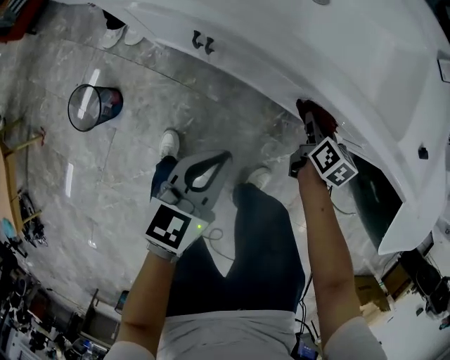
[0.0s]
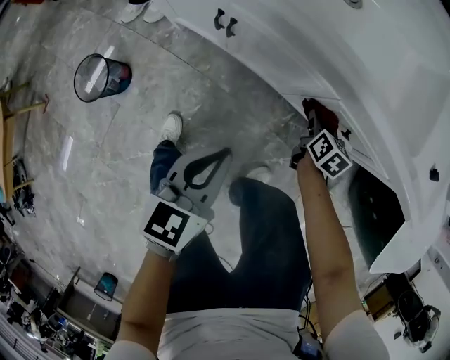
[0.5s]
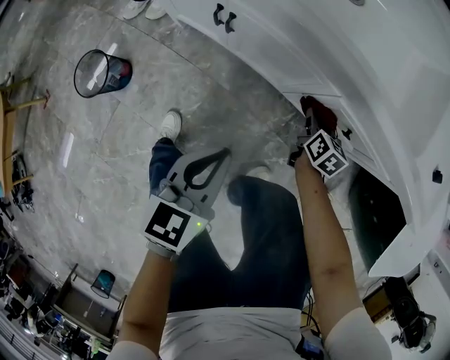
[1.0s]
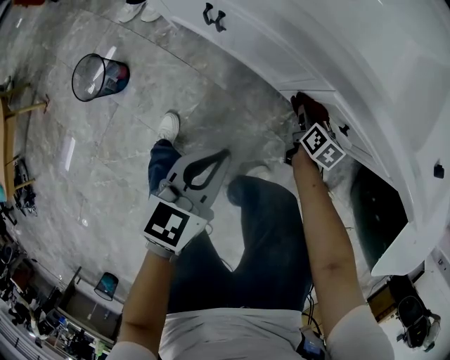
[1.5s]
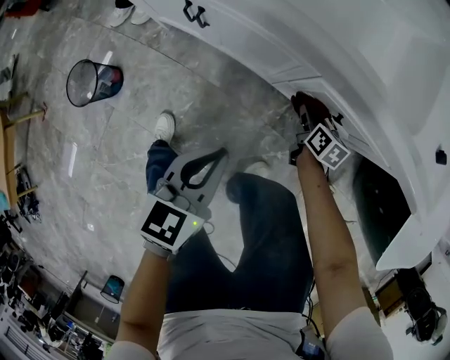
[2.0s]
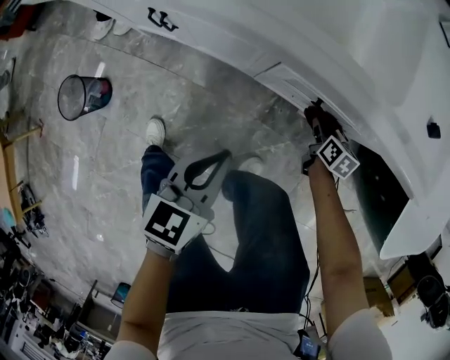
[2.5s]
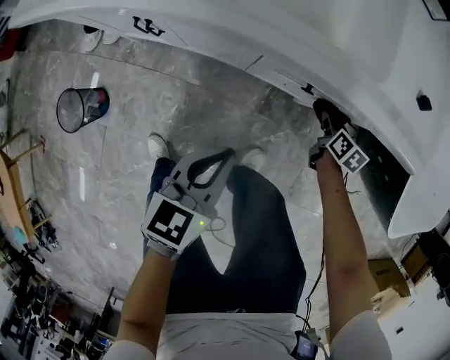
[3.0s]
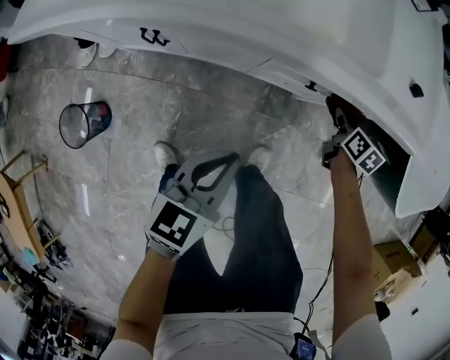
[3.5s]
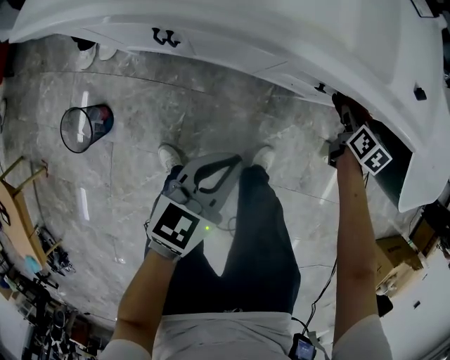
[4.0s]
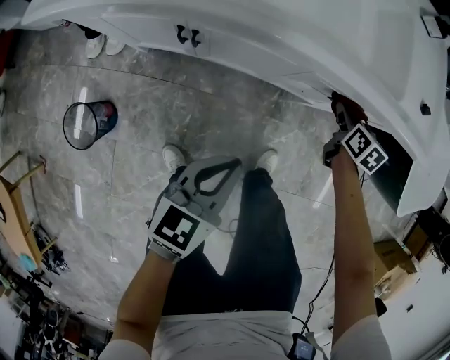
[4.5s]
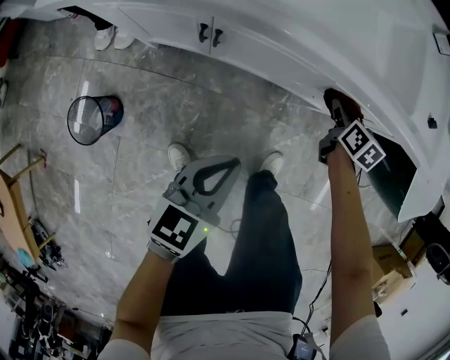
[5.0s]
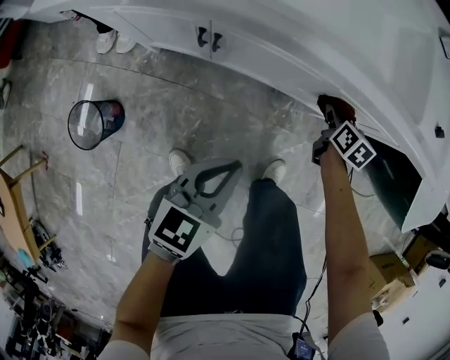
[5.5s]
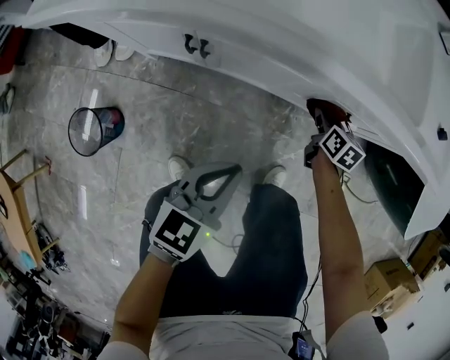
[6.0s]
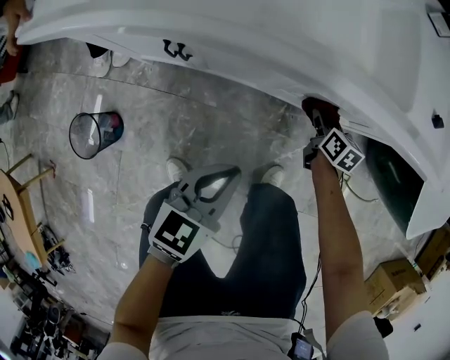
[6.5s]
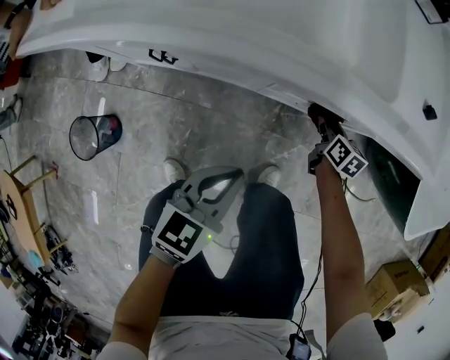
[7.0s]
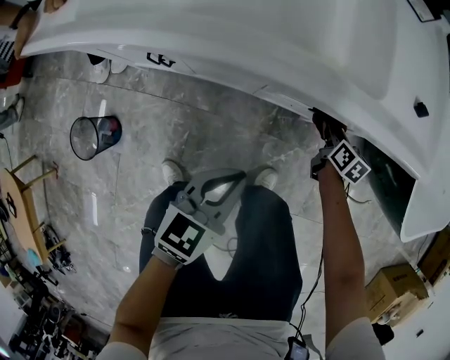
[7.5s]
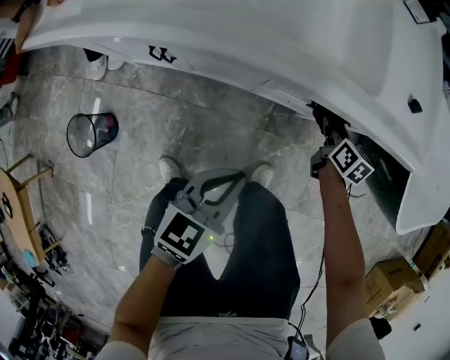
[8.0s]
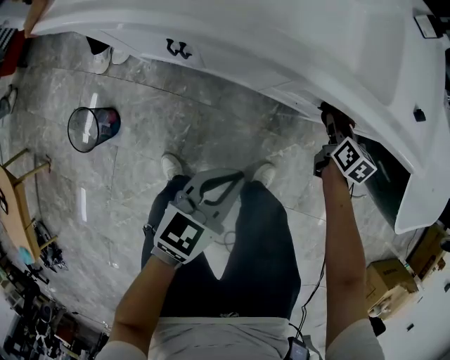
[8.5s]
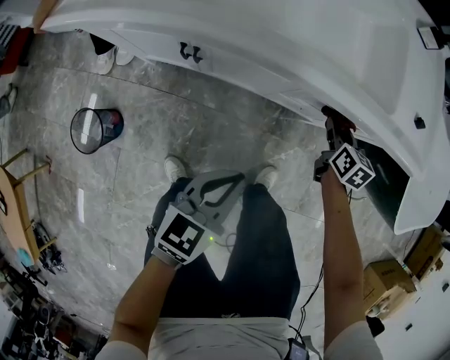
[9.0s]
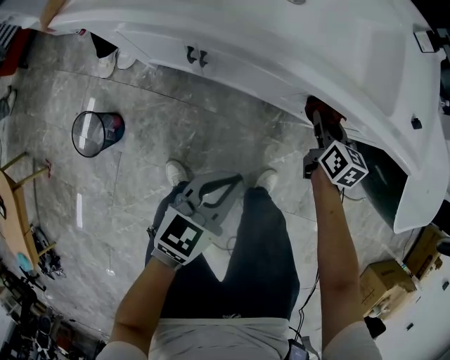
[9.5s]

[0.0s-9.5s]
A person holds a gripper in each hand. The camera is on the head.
0.0s to 2.0s: The left gripper shifts some 5 cm to the right. Meanwhile the right gripper shifts about 10 cm downward.
2.0s to 4.0s: The left gripper is displaced upward by some 5 cm, and rotates roughly 20 degrees. The right gripper goes roughly 15 cm upward, and changes its angle by some 20 degrees.
4.0s to 5.5s: The right gripper heads to the left and downward, covering some 15 cm; the left gripper goes some 10 cm to the left.
5.5s to 7.5s: The grippers both shift to the right by some 15 cm.
7.5s to 9.5s: The right gripper travels to the left and upward by approximately 20 cm; the left gripper goes about 10 cm to the left and backward.

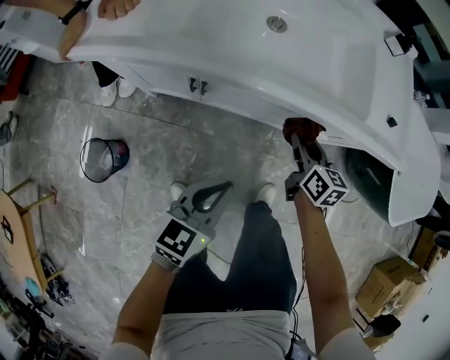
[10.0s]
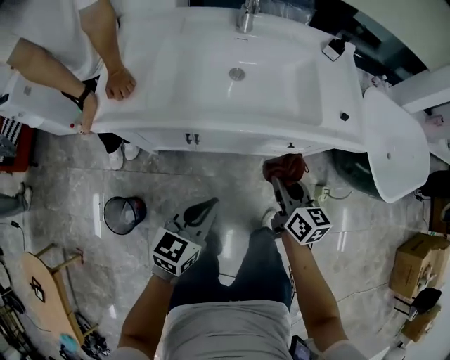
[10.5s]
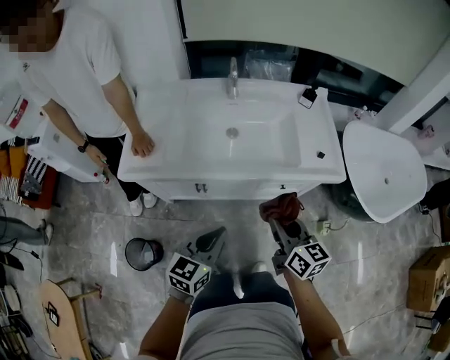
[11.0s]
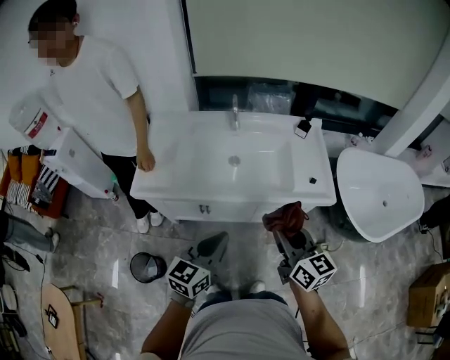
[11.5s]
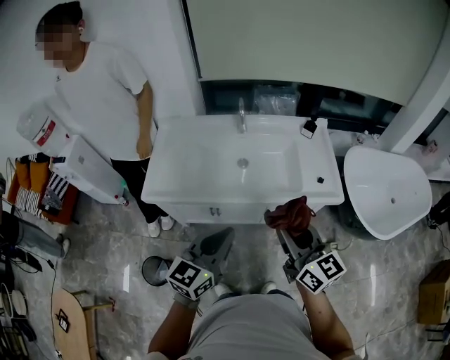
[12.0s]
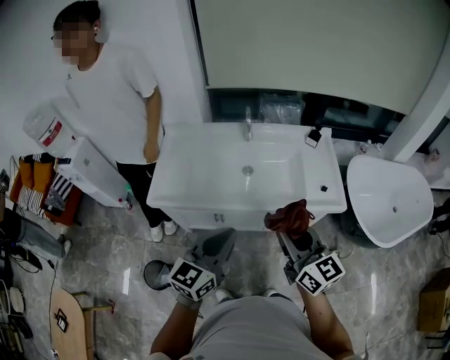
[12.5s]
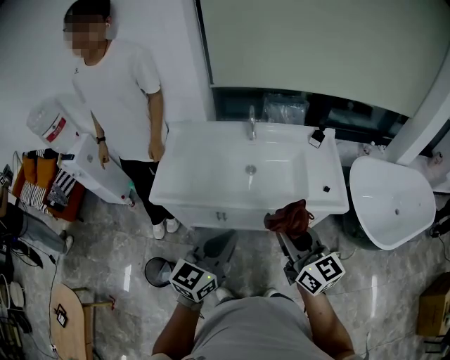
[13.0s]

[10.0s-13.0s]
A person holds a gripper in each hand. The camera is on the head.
10.0s to 11.5s: The grippers both shift upward by some 35 cm. The right gripper rotates some 20 degrees.
11.5s to 13.0s: Both grippers travel together upward, approximately 5 cm.

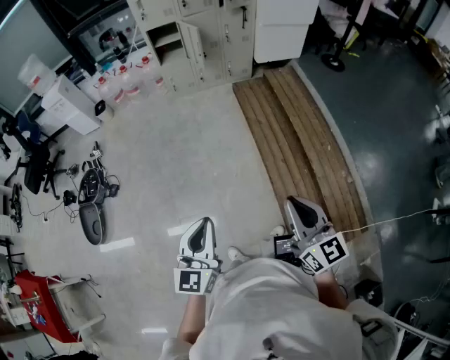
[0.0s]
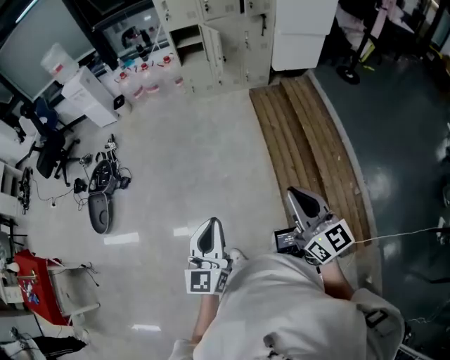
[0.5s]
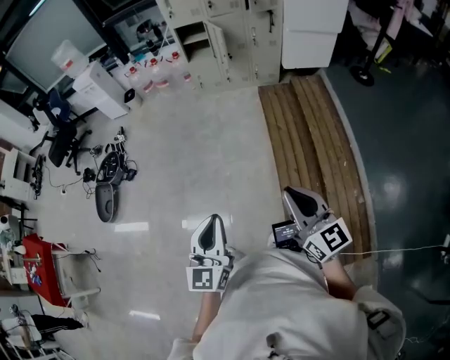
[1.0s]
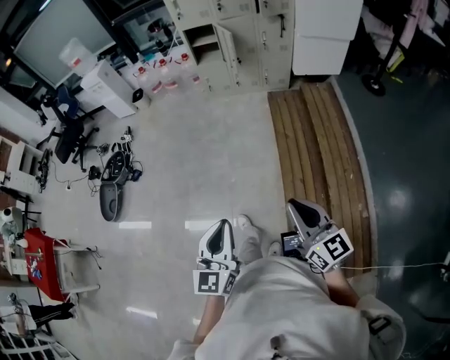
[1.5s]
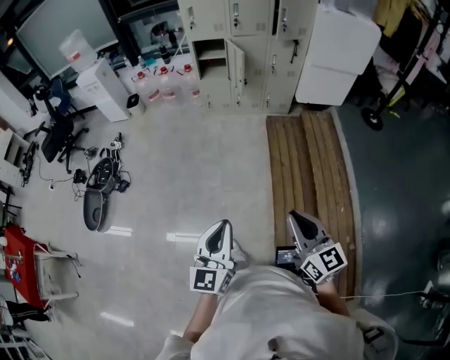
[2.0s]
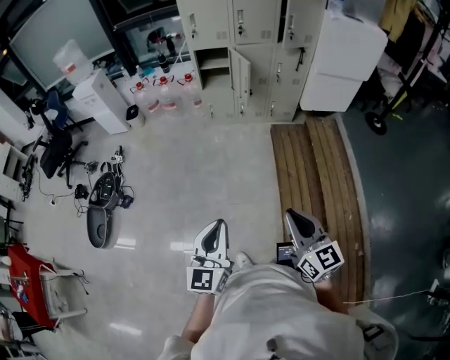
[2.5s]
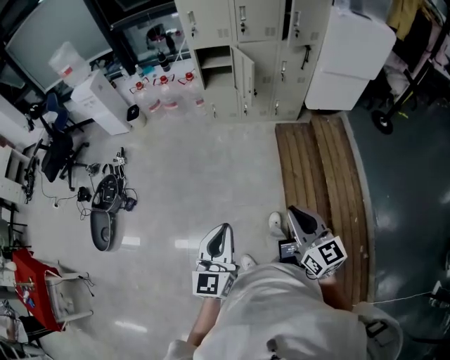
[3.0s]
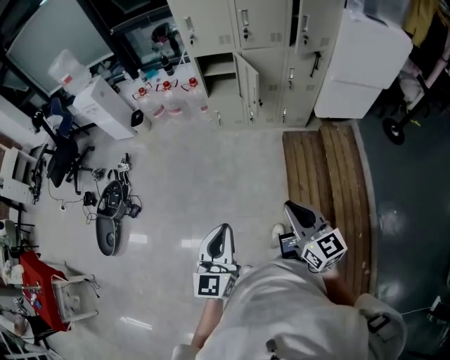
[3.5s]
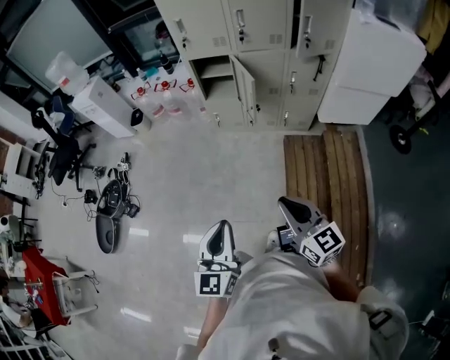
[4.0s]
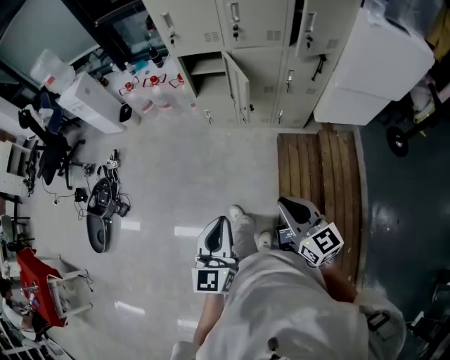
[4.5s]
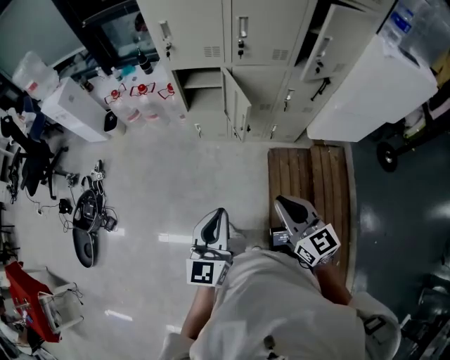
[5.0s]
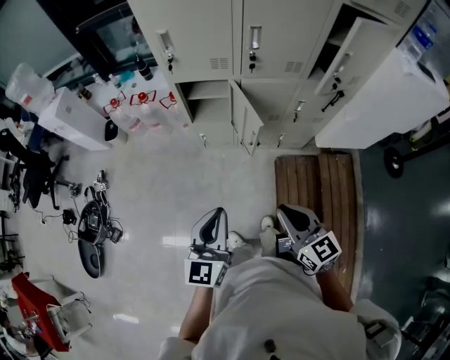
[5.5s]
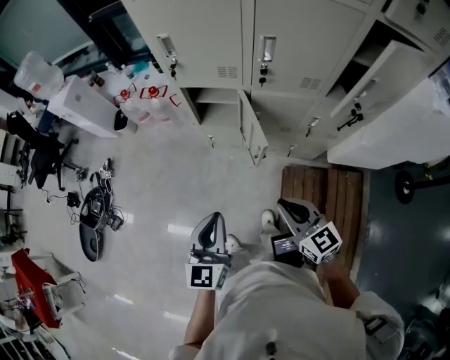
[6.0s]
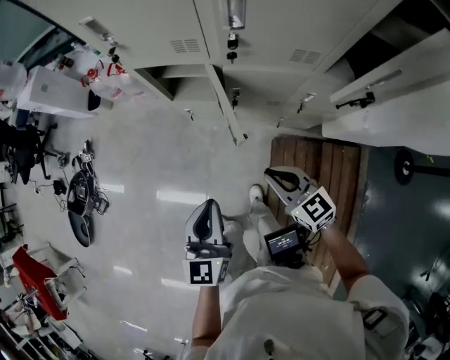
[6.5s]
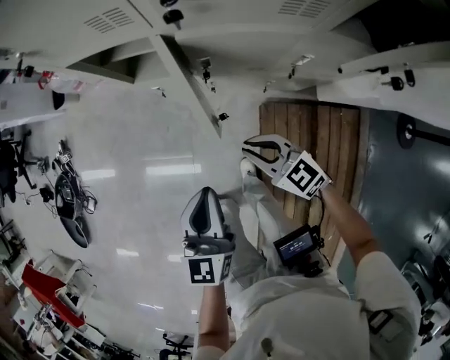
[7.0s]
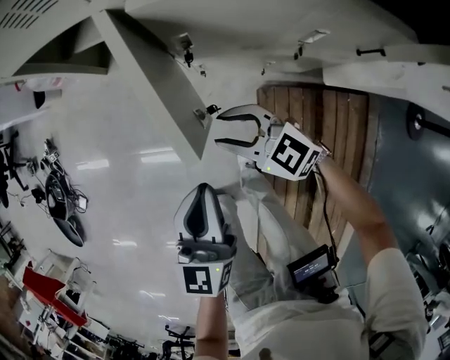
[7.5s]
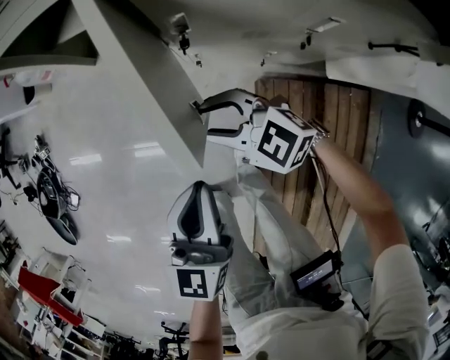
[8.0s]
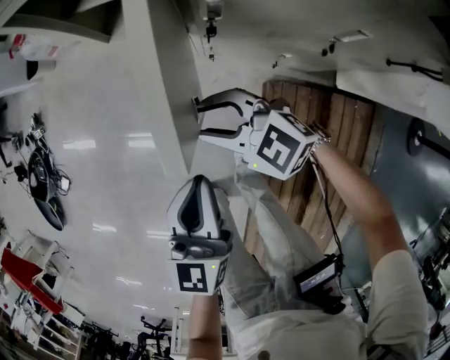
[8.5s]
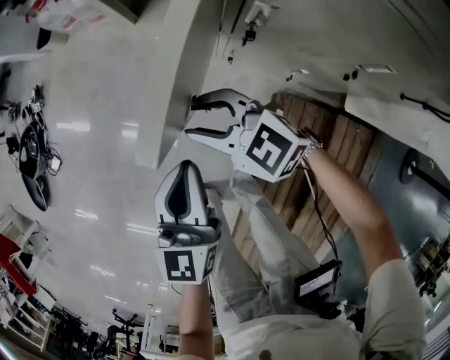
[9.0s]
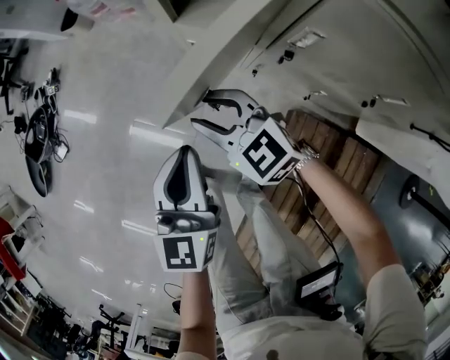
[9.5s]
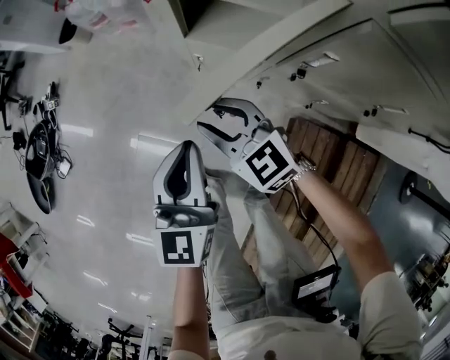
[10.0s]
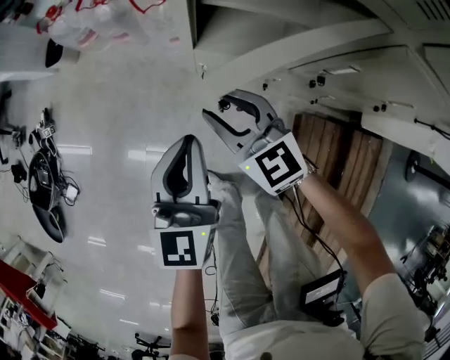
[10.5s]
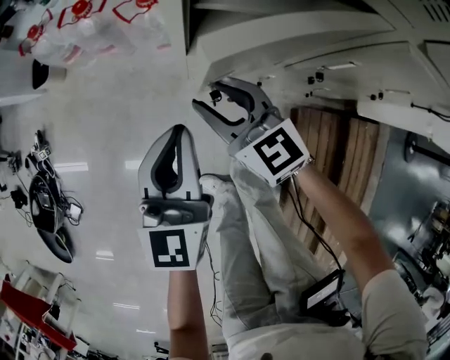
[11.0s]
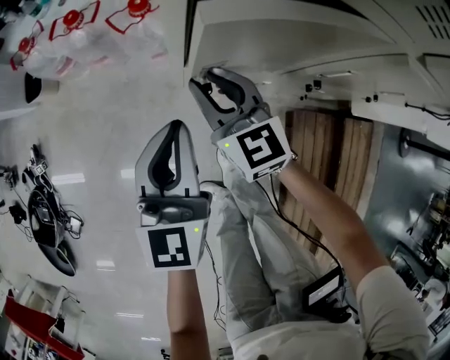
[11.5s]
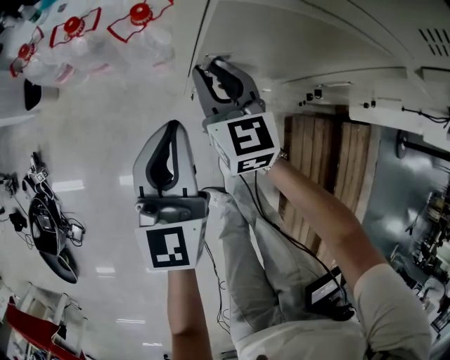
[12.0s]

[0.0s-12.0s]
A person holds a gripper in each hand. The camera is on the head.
0.0s to 2.0s: Both grippers move forward and to the right, some 20 cm.
2.0s to 4.0s: Both grippers move forward, some 40 cm.
4.0s to 6.0s: The pair of grippers is taken forward, approximately 40 cm.
6.0s to 8.0s: The left gripper travels downward and to the right by approximately 30 cm; the right gripper travels downward and forward by approximately 35 cm, swivels some 40 degrees, and opens up.
8.0s to 10.0s: Both grippers move forward and to the left, about 25 cm.
10.0s to 12.0s: The right gripper shifts by about 25 cm, and turns by some 50 degrees, while the left gripper changes place by approximately 20 cm.

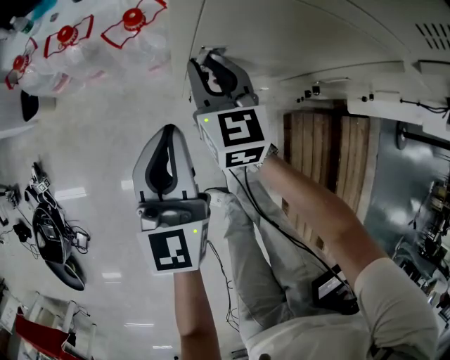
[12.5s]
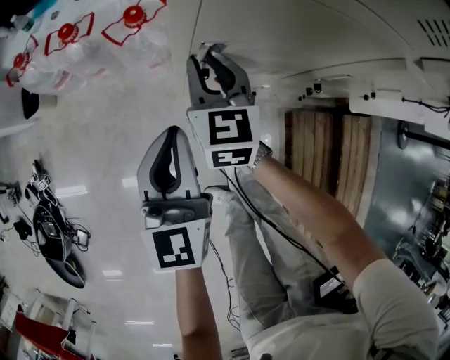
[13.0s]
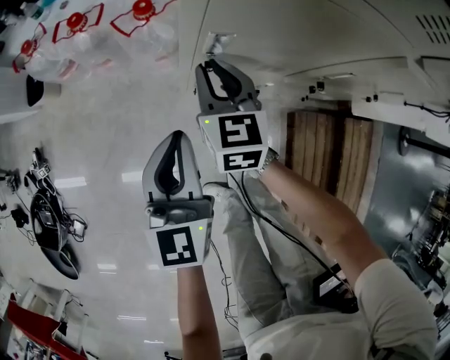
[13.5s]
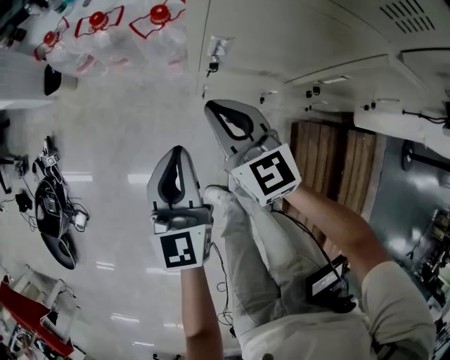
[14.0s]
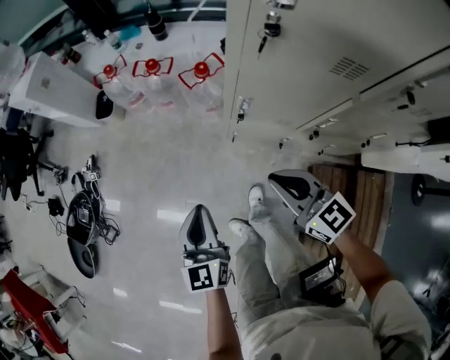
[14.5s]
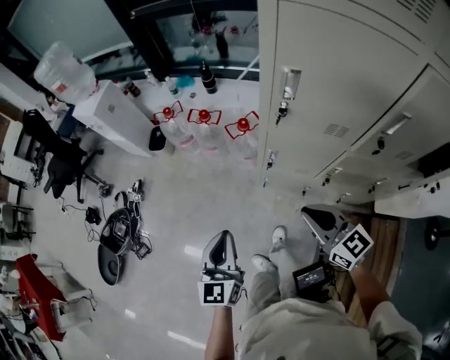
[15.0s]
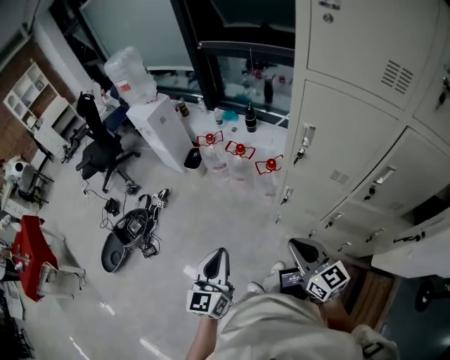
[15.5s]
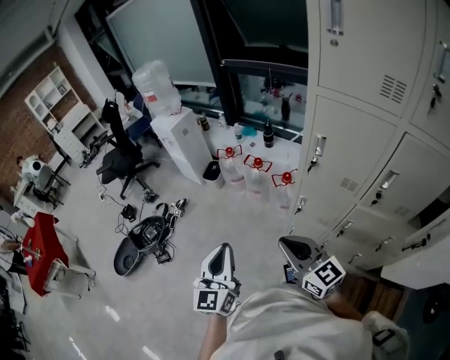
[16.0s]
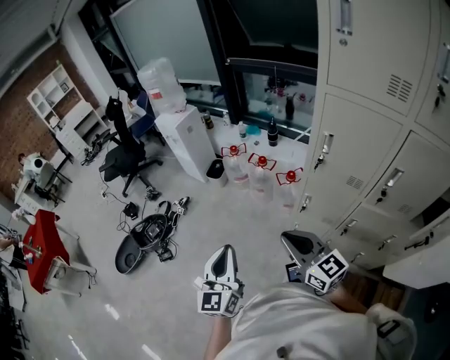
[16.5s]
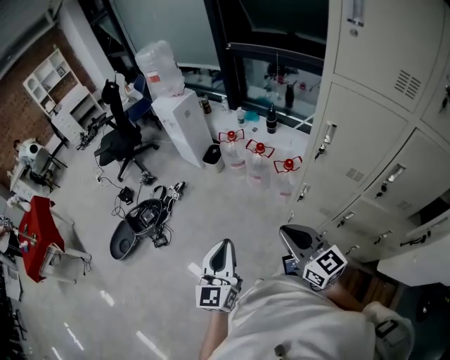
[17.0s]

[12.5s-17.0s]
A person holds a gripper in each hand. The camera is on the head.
12.5s to 14.5s: The right gripper moves some 30 cm, and changes its angle by some 40 degrees; the left gripper ends up about 20 cm from where it was.
14.5s to 17.0s: Both grippers travel together upward and to the left, about 30 cm. The right gripper turns by some 20 degrees, while the left gripper changes its angle by approximately 20 degrees.
